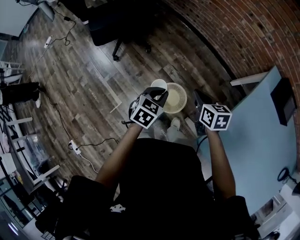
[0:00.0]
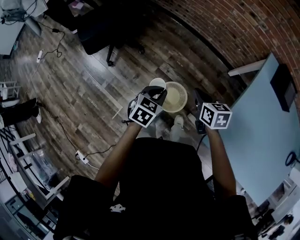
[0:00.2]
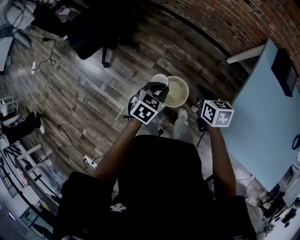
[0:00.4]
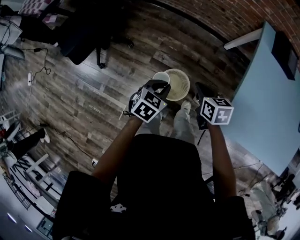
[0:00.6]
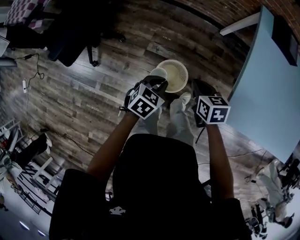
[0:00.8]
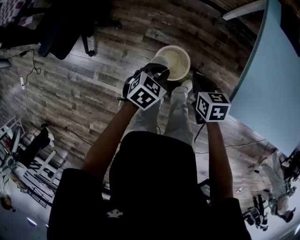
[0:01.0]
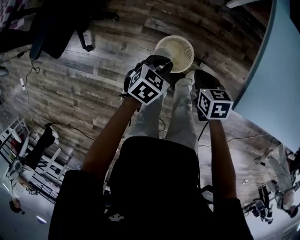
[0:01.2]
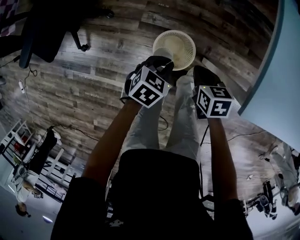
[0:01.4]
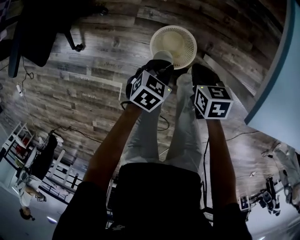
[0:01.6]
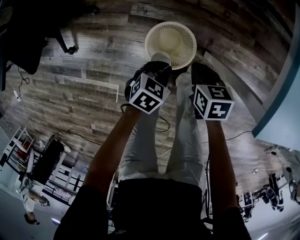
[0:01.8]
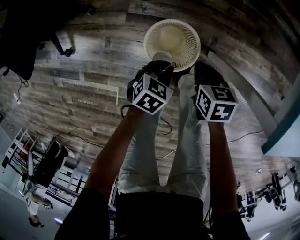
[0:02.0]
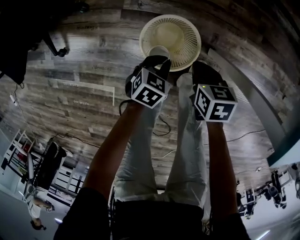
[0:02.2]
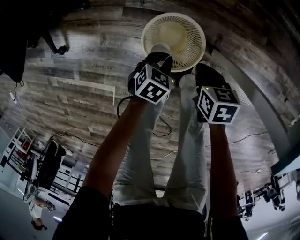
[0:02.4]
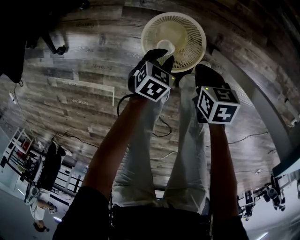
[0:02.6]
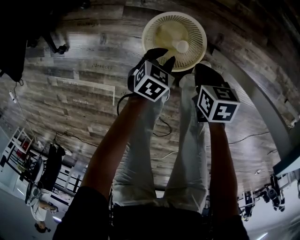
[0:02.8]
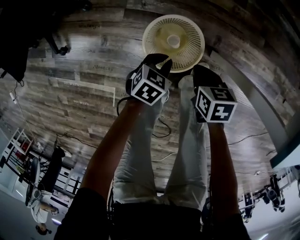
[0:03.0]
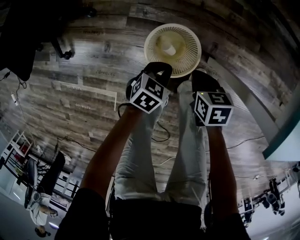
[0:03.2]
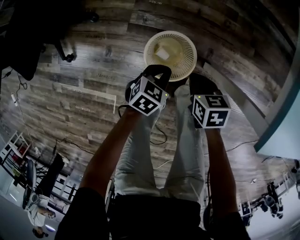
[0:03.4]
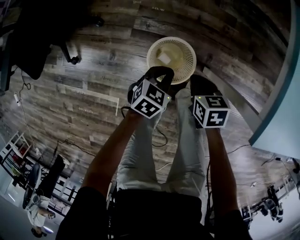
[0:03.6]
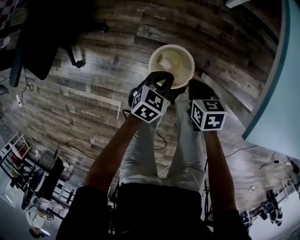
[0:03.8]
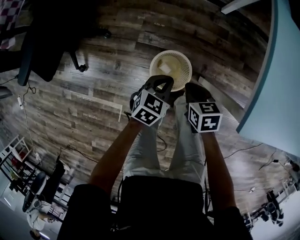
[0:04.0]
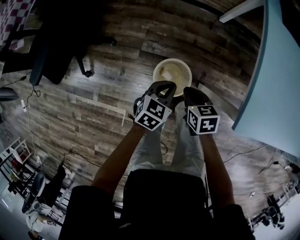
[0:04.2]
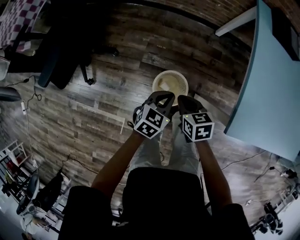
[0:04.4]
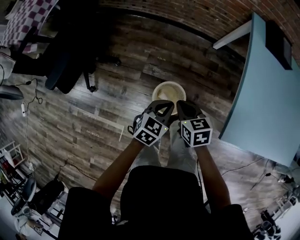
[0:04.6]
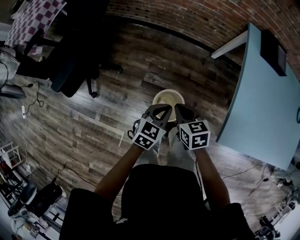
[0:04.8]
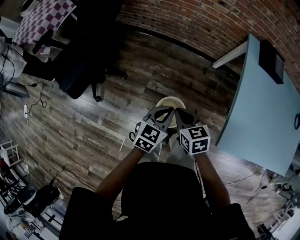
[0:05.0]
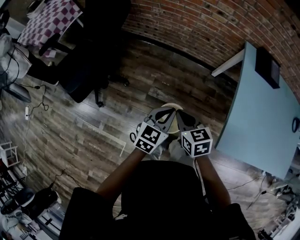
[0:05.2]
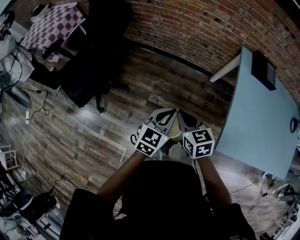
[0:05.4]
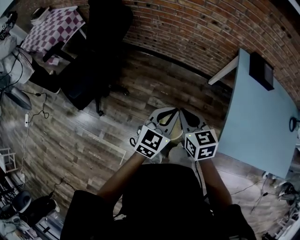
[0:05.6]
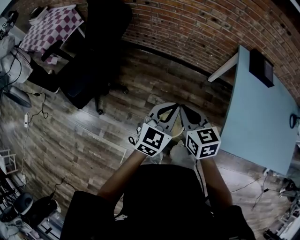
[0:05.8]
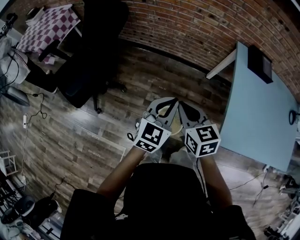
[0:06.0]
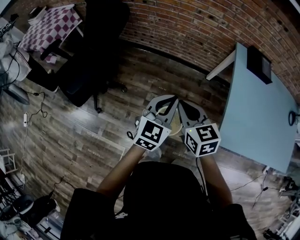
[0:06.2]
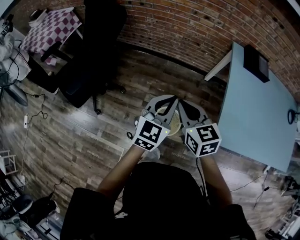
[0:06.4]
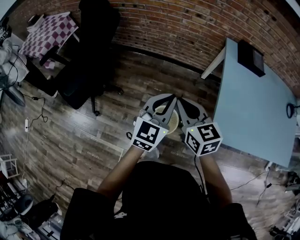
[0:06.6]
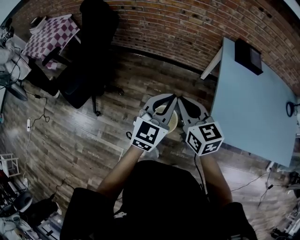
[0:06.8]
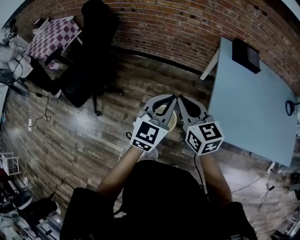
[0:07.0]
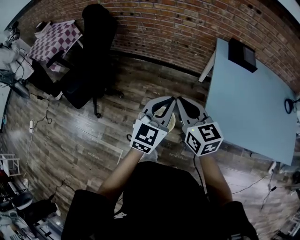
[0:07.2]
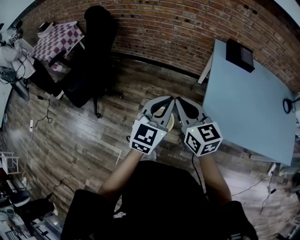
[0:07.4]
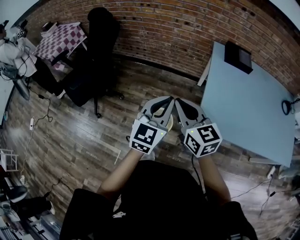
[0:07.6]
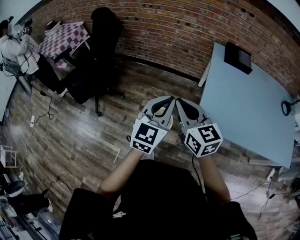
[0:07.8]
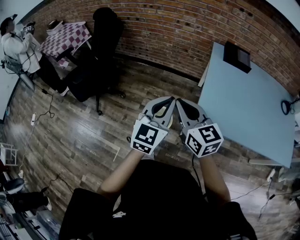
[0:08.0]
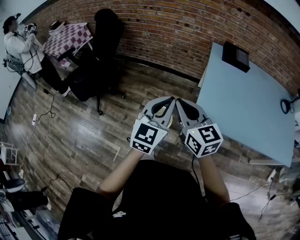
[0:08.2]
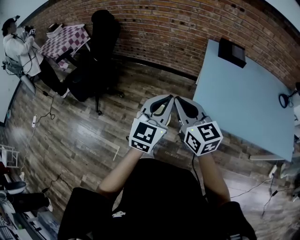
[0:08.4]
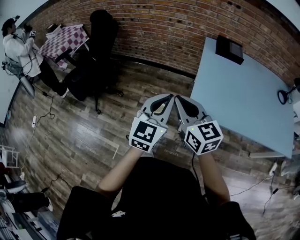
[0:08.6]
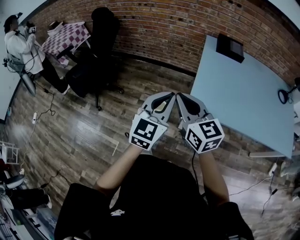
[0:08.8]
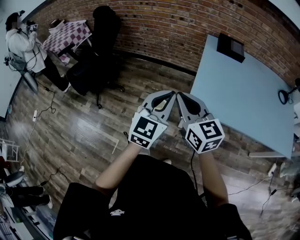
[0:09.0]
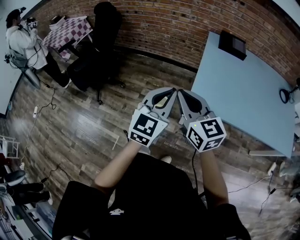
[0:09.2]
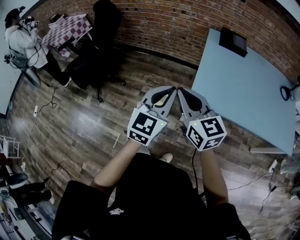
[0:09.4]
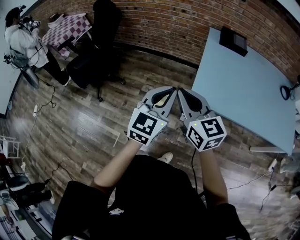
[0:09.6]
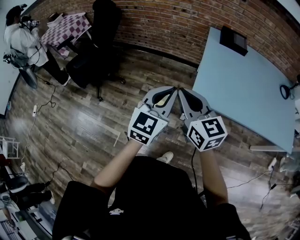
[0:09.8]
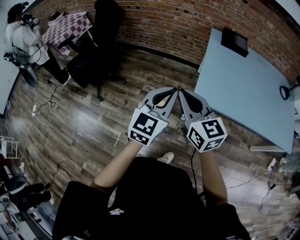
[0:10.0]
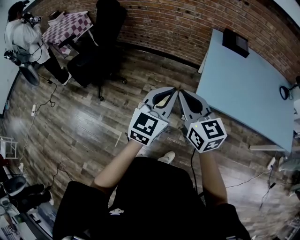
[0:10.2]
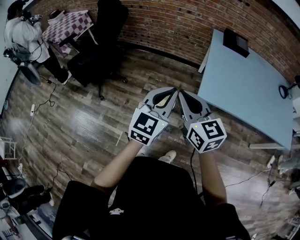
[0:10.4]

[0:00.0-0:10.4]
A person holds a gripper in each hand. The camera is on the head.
0:00.0 to 0:01.4: Both grippers move downward, roughly 25 cm. The left gripper swivels some 40 degrees; the right gripper turns by roughly 30 degrees.
0:01.4 to 0:03.0: The grippers both shift downward by about 25 cm.
0:03.0 to 0:04.4: Both grippers move upward, approximately 35 cm. The left gripper turns by some 20 degrees.
0:04.4 to 0:06.0: Both grippers move upward, some 30 cm. The right gripper swivels roughly 30 degrees. Meanwhile the left gripper rotates some 30 degrees.
0:06.0 to 0:07.4: The grippers both shift to the right, backward and upward by approximately 20 cm.
0:07.4 to 0:09.0: The grippers both shift backward and to the right by about 15 cm.
0:09.0 to 0:10.4: The grippers both shift to the left by some 10 cm.

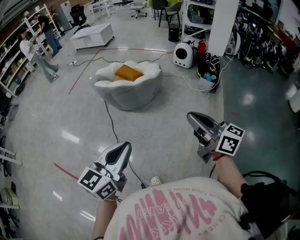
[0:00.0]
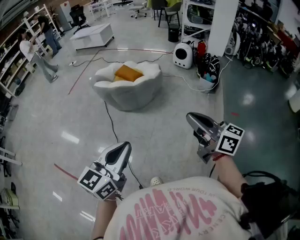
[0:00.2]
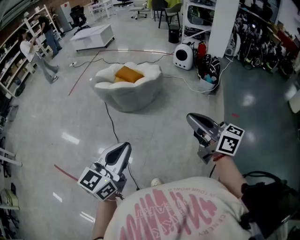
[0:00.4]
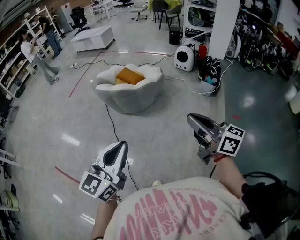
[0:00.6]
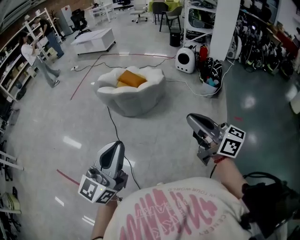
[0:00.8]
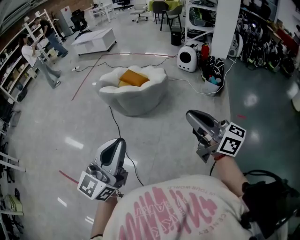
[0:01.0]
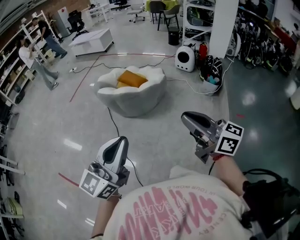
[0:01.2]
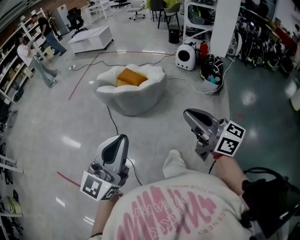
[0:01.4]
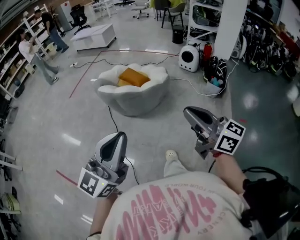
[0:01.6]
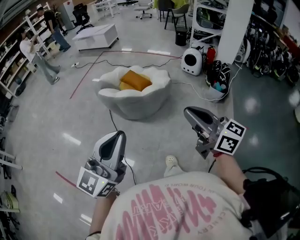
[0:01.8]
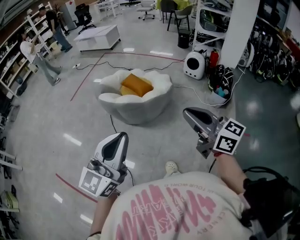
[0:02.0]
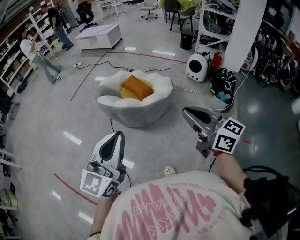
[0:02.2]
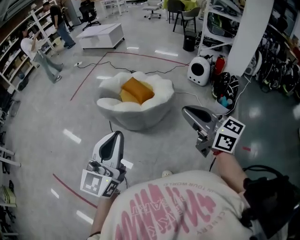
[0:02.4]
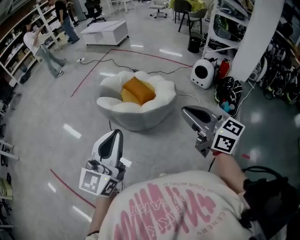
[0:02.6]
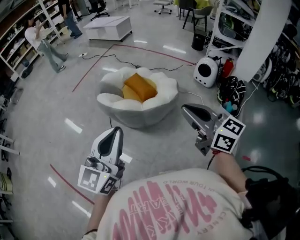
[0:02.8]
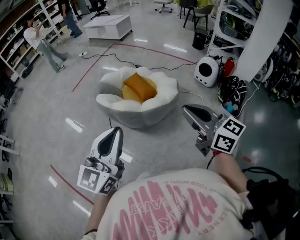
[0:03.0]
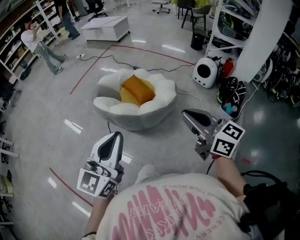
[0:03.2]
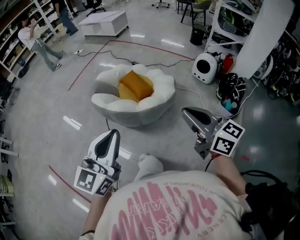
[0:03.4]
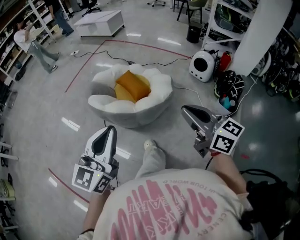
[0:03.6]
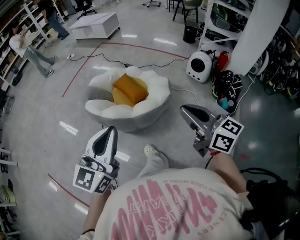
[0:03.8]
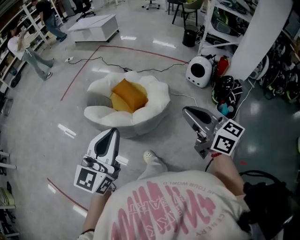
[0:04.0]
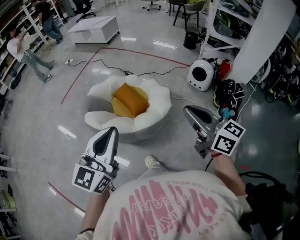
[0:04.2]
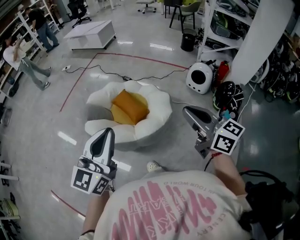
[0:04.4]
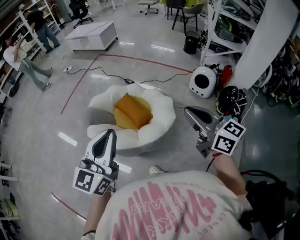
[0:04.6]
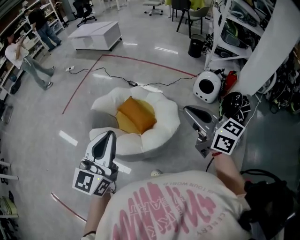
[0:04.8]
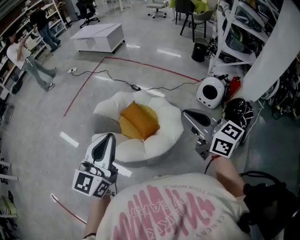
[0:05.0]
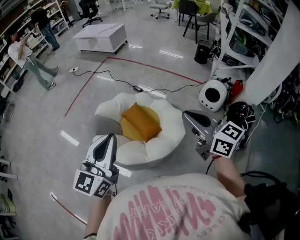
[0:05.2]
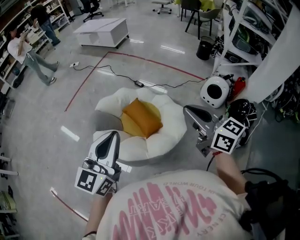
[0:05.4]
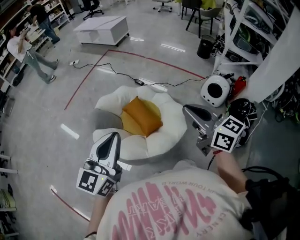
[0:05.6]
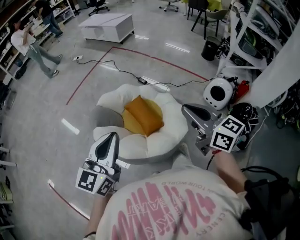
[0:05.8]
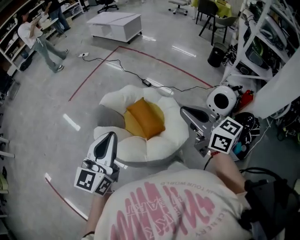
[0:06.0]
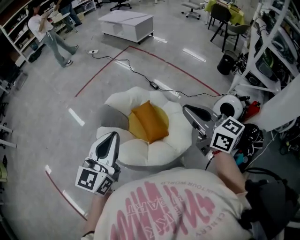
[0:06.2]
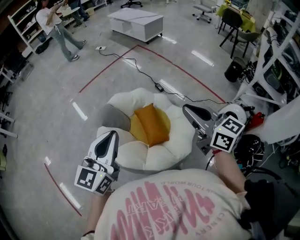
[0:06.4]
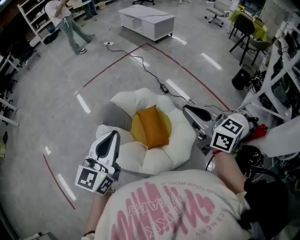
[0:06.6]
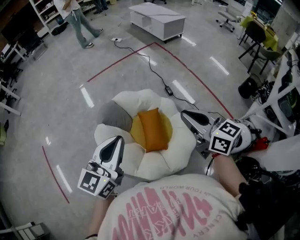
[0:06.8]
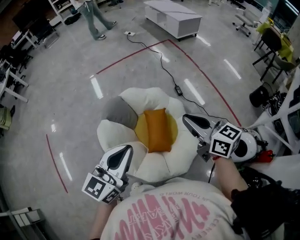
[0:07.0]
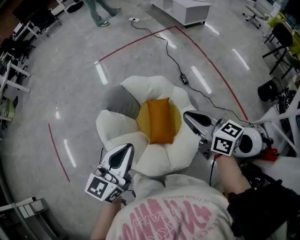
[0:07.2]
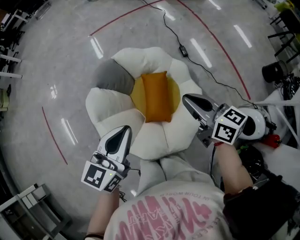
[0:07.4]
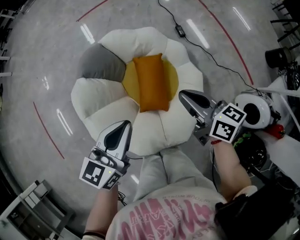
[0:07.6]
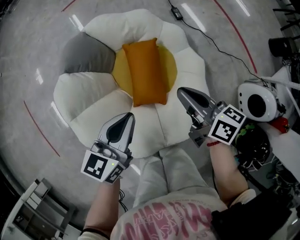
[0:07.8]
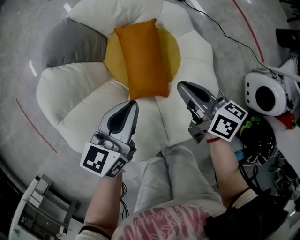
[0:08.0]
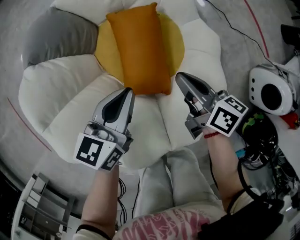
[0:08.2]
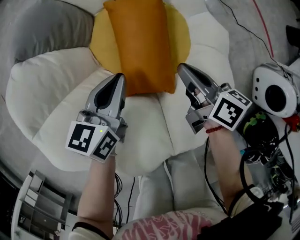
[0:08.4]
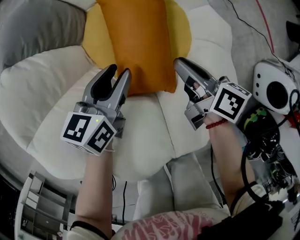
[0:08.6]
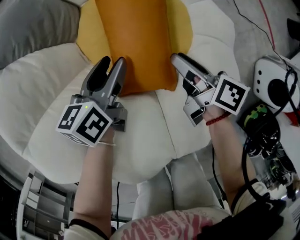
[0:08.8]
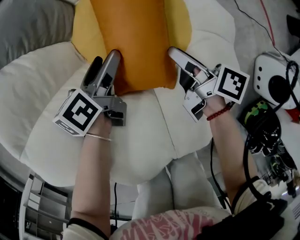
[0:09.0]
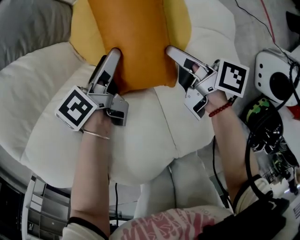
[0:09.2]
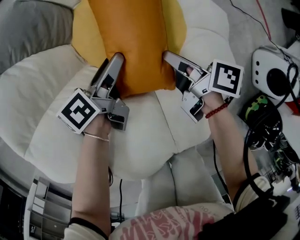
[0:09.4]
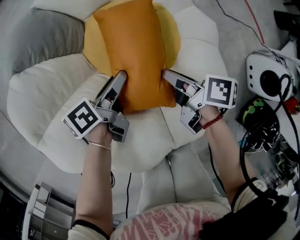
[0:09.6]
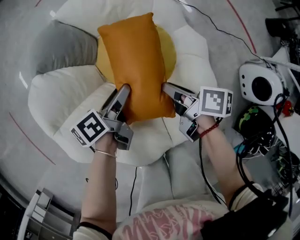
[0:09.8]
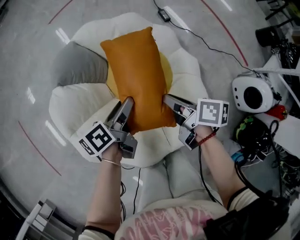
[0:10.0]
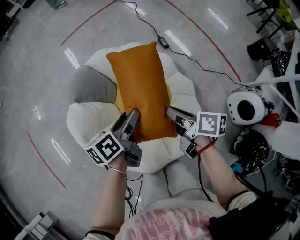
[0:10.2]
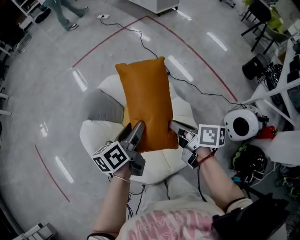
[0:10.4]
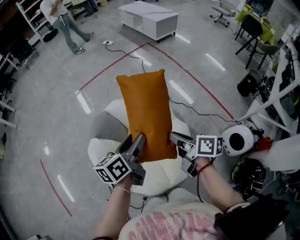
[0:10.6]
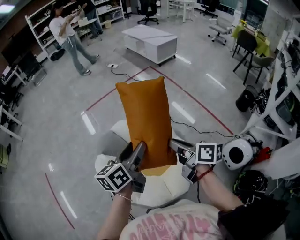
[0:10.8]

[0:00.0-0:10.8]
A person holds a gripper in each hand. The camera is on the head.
0:00.0 to 0:01.6: The right gripper moves forward and to the left, roughly 10 cm. Meanwhile the left gripper heads forward, to the left and upward, covering some 15 cm, and turns by about 30 degrees.
0:01.6 to 0:03.0: The right gripper heads forward, covering about 30 cm. The left gripper travels forward and to the right by roughly 30 cm, and rotates about 20 degrees.
0:03.0 to 0:04.6: The grippers both shift forward by some 25 cm.
0:04.6 to 0:06.2: The left gripper travels forward by some 15 cm, while the right gripper is displaced forward by roughly 20 cm.
0:06.2 to 0:07.8: The right gripper is displaced downward and forward by about 40 cm, and swivels approximately 40 degrees, while the left gripper is displaced downward and to the right by roughly 35 cm, and changes its angle by about 30 degrees.
0:07.8 to 0:09.2: The grippers both shift downward by approximately 30 cm. The left gripper twists approximately 50 degrees counterclockwise, seen from behind, and opens its fingers; the right gripper rotates roughly 30 degrees, and opens.
0:09.2 to 0:10.8: Both grippers move upward, some 60 cm. The left gripper rotates approximately 40 degrees. Meanwhile the right gripper turns by about 30 degrees.

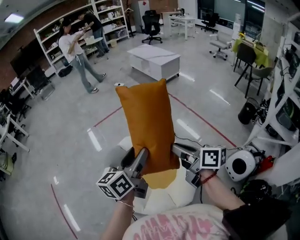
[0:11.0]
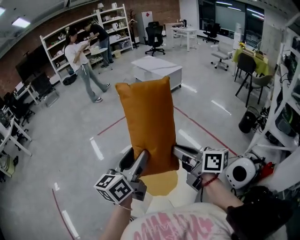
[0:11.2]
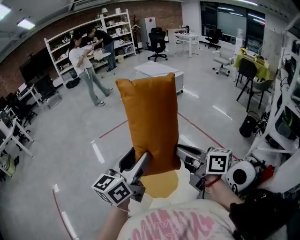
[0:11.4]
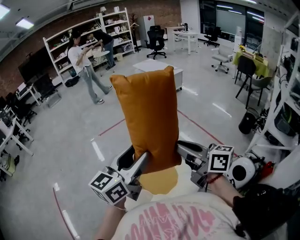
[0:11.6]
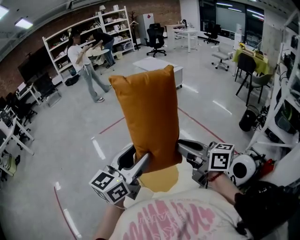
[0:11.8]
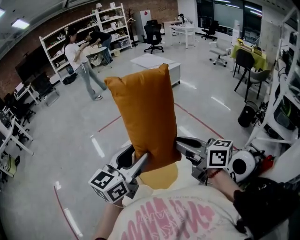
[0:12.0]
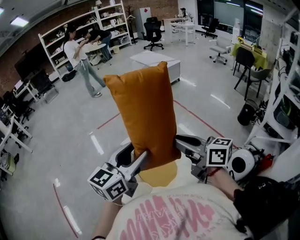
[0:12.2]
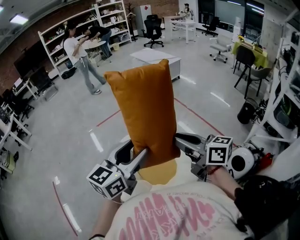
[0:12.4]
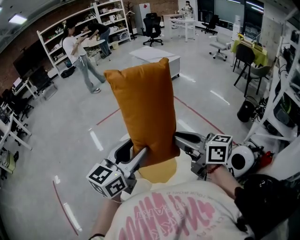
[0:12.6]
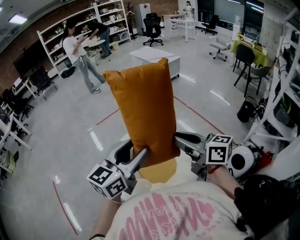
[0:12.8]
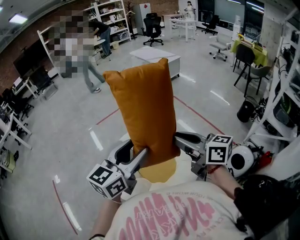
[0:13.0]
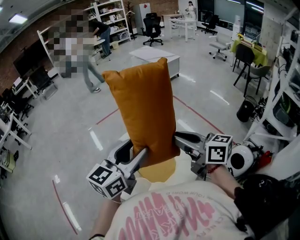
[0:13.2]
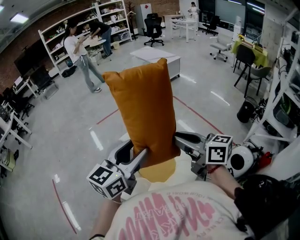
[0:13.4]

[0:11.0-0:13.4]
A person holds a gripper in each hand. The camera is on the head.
0:11.0 to 0:12.2: The right gripper heads upward and backward, covering approximately 10 cm, and turns by some 20 degrees; the left gripper shifts approximately 10 cm backward and upward, and swivels some 30 degrees.
0:12.2 to 0:13.4: Neither gripper changes place.
